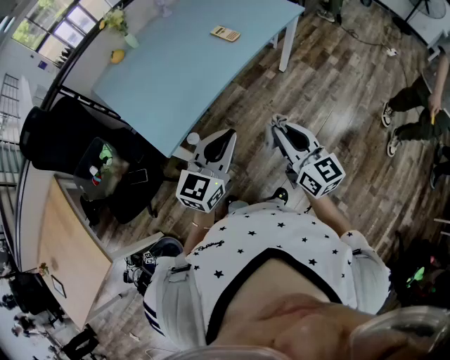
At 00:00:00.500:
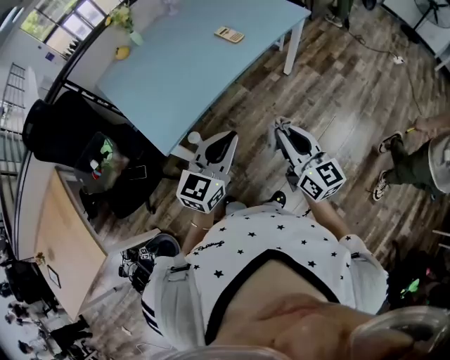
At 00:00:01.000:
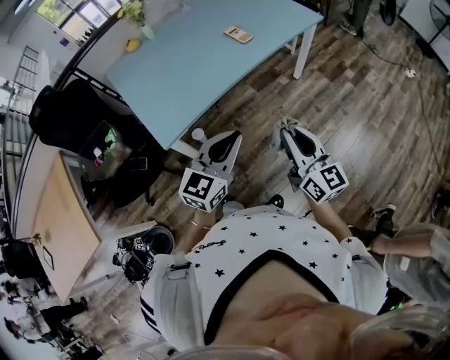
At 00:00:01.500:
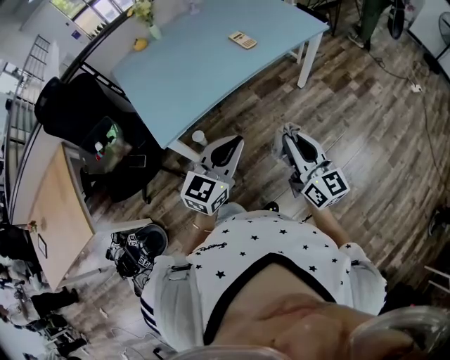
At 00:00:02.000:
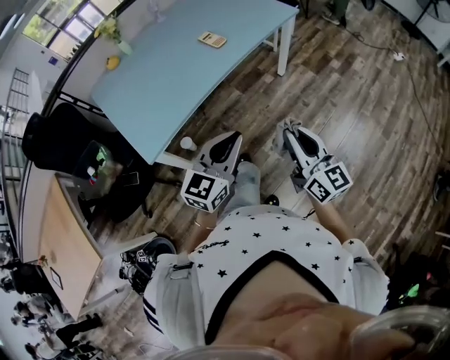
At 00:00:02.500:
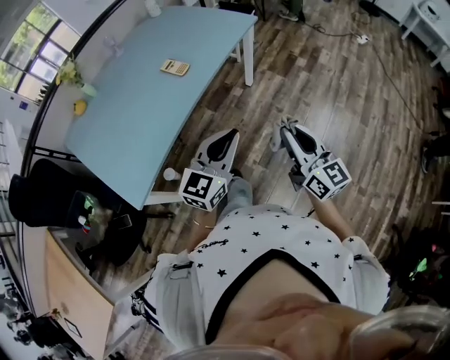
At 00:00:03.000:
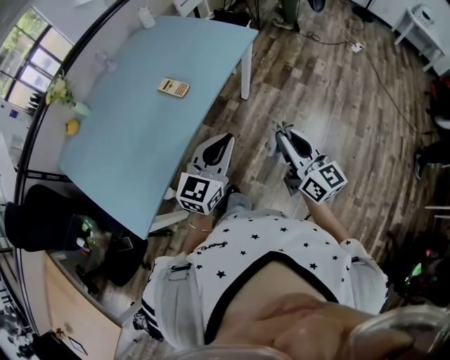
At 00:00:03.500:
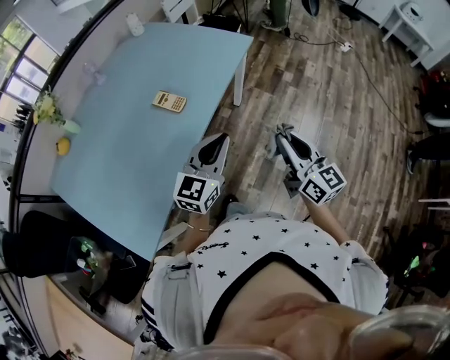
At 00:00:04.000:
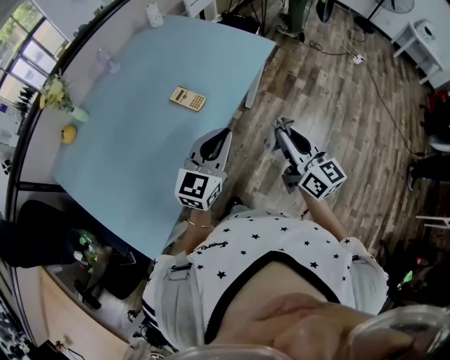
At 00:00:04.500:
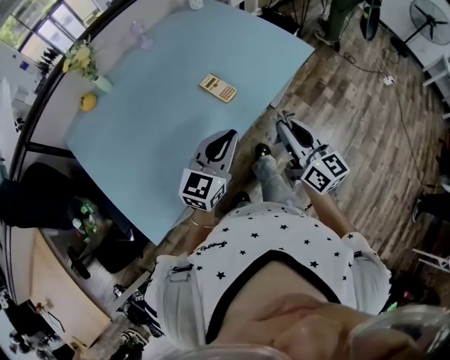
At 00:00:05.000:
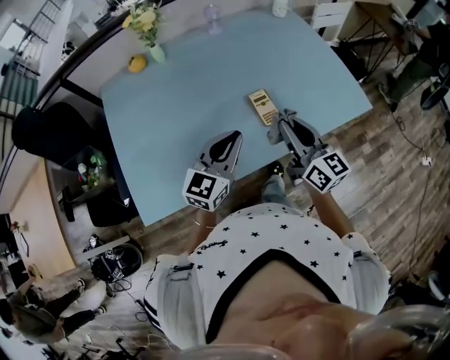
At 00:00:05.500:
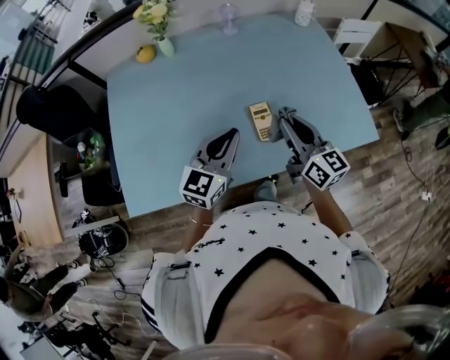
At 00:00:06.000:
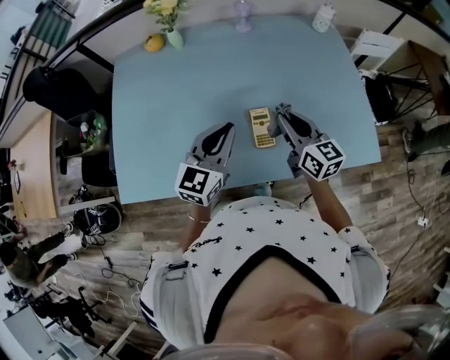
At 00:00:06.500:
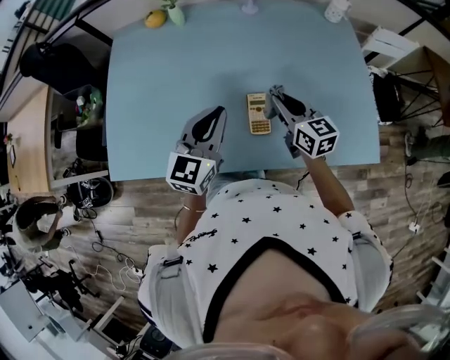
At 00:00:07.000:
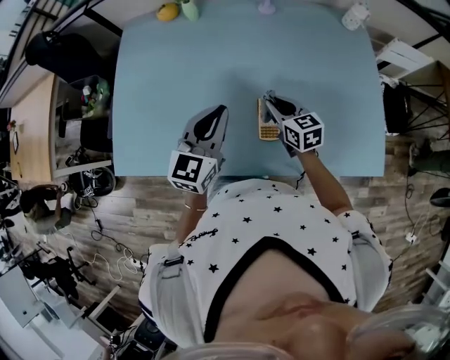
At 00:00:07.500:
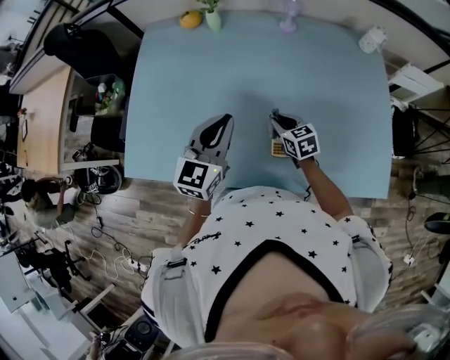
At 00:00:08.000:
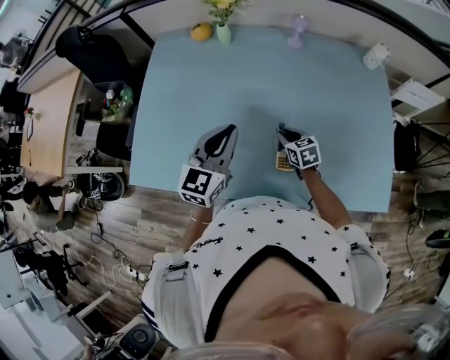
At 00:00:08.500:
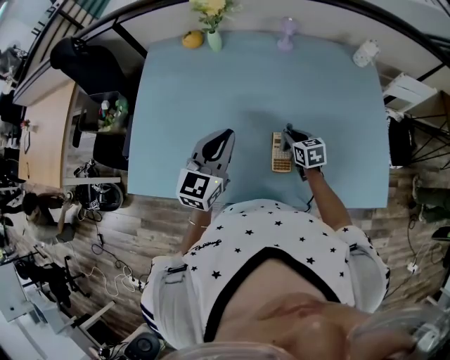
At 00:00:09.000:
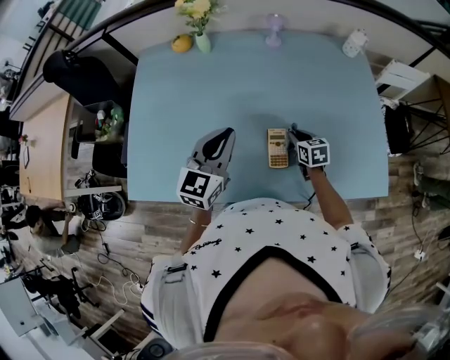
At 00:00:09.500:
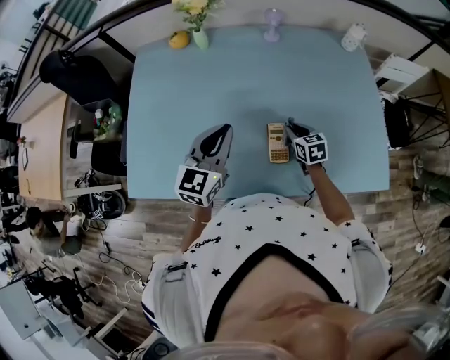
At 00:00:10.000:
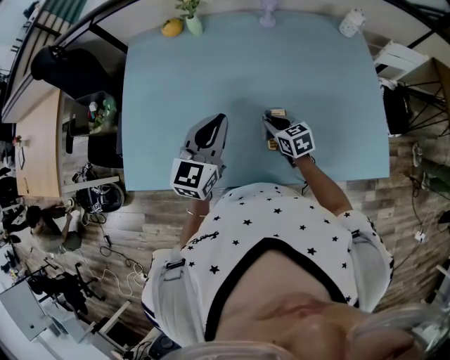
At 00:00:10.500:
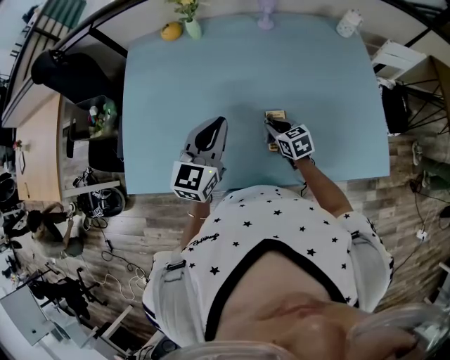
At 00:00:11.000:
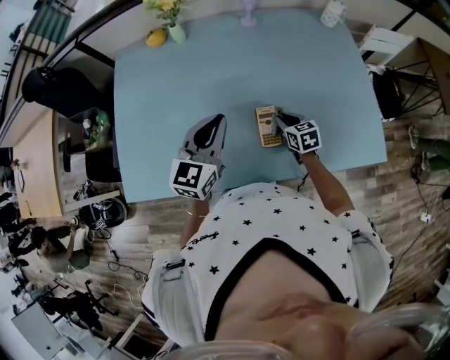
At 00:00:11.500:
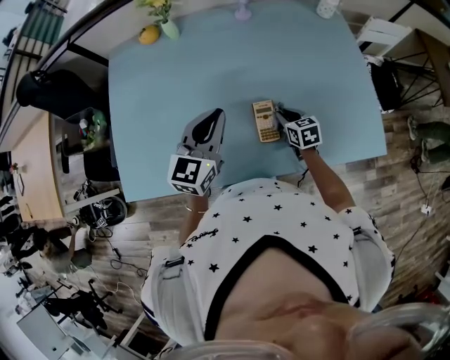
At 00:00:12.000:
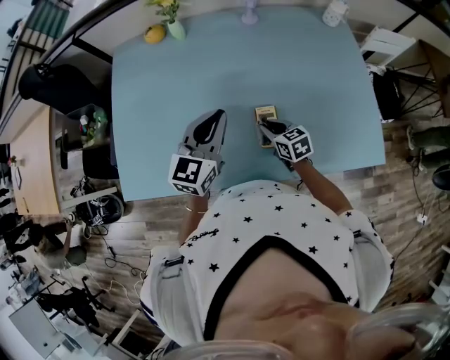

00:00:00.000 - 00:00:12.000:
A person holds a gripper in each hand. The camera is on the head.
00:00:00.000 - 00:00:02.000: Both grippers move to the right, some 10 cm.
00:00:02.000 - 00:00:04.000: Both grippers travel together forward, about 30 cm.
00:00:04.000 - 00:00:06.000: The left gripper ends up approximately 25 cm from where it was, and rotates some 50 degrees, while the right gripper shifts by roughly 40 cm, and rotates approximately 50 degrees.
00:00:06.000 - 00:00:08.000: The left gripper goes some 5 cm to the left. Meanwhile the right gripper goes roughly 20 cm downward and forward, and tilts its fingers about 30 degrees downward.
00:00:08.000 - 00:00:10.000: The right gripper travels to the right and back again, about 10 cm each way.
00:00:10.000 - 00:00:12.000: The right gripper moves roughly 10 cm to the right and comes back.

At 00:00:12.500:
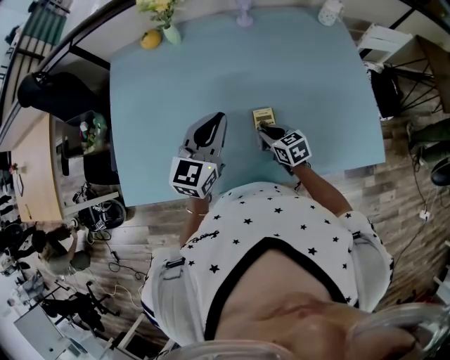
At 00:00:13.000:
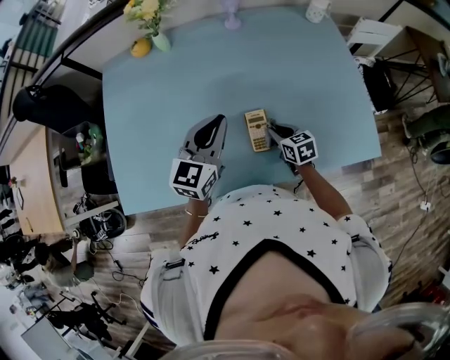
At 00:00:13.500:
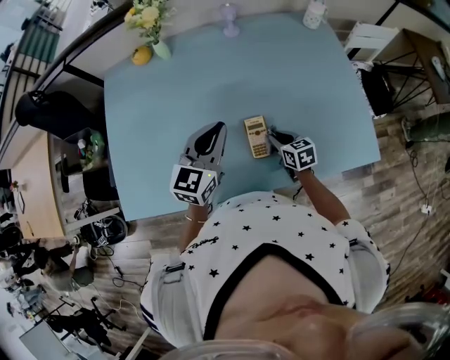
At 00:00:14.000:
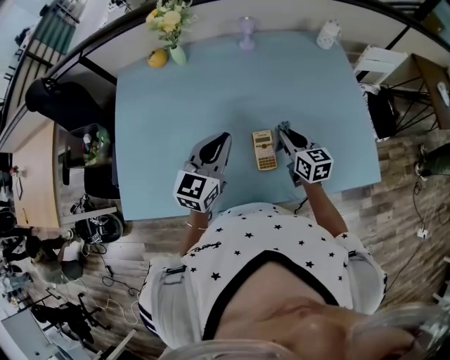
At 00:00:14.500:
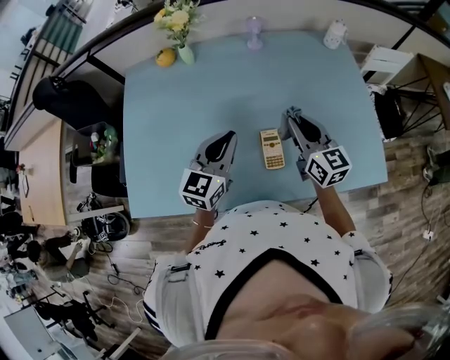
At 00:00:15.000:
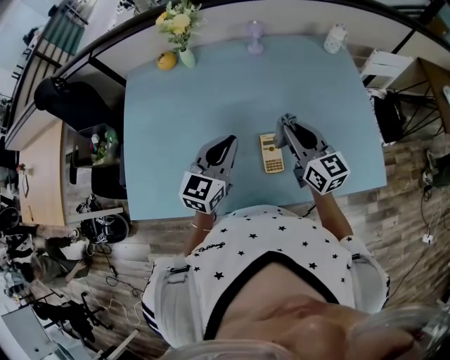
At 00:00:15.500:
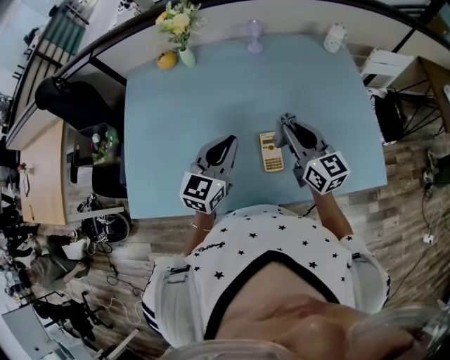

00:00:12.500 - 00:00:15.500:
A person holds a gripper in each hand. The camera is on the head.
00:00:12.500 - 00:00:14.000: The right gripper shifts some 10 cm upward and to the right, and changes its angle by about 20 degrees.
00:00:14.000 - 00:00:15.500: The right gripper goes roughly 10 cm upward.

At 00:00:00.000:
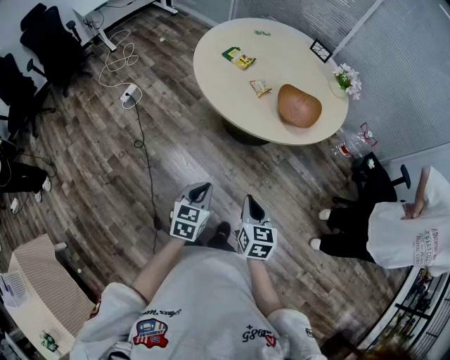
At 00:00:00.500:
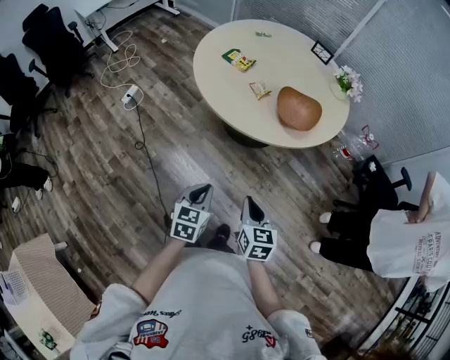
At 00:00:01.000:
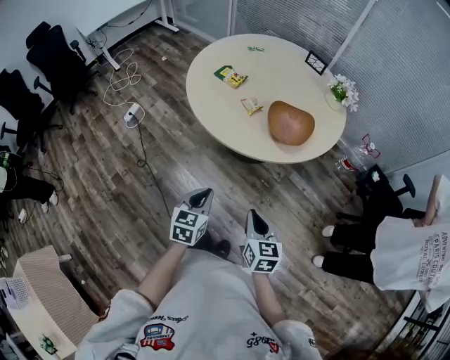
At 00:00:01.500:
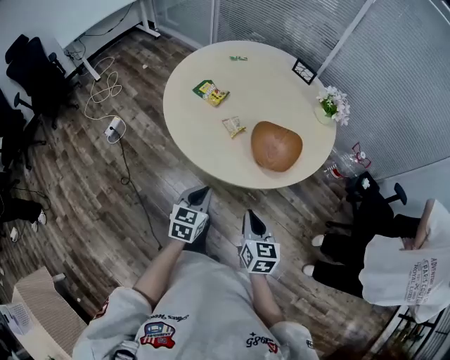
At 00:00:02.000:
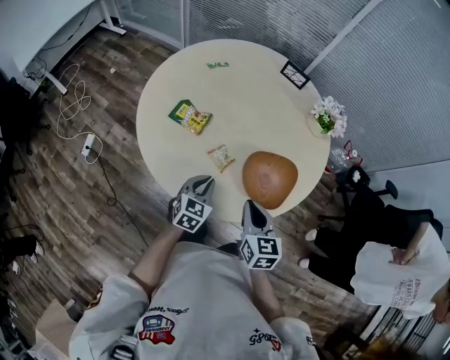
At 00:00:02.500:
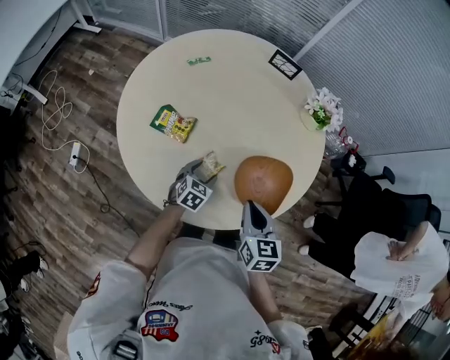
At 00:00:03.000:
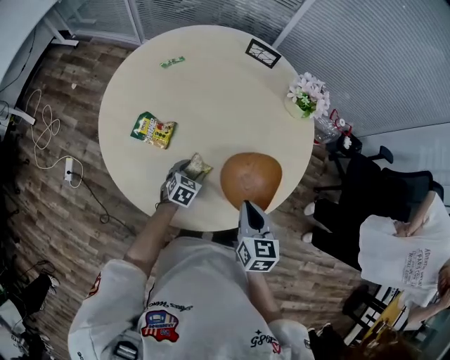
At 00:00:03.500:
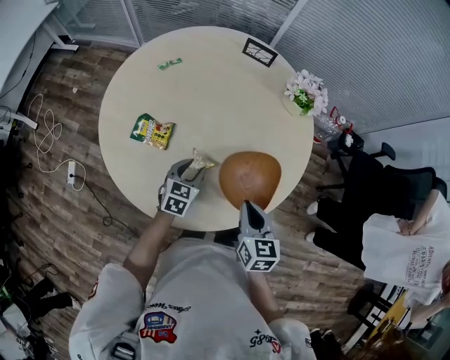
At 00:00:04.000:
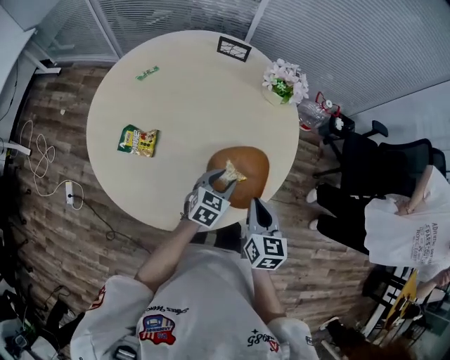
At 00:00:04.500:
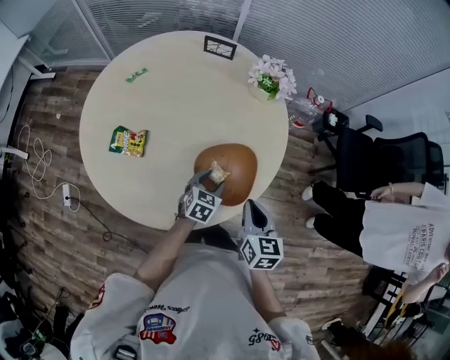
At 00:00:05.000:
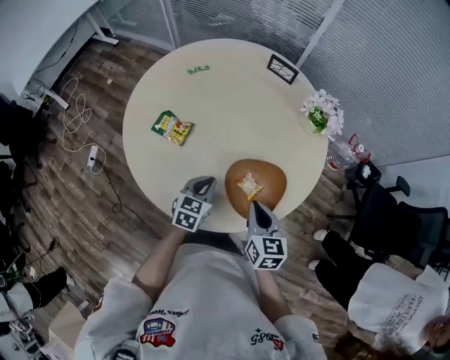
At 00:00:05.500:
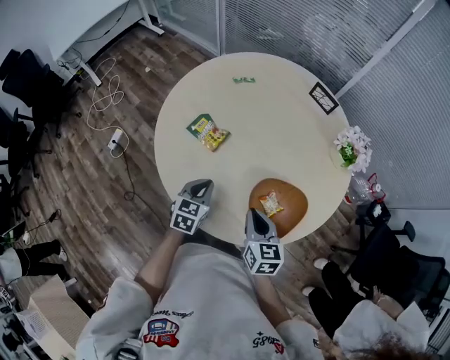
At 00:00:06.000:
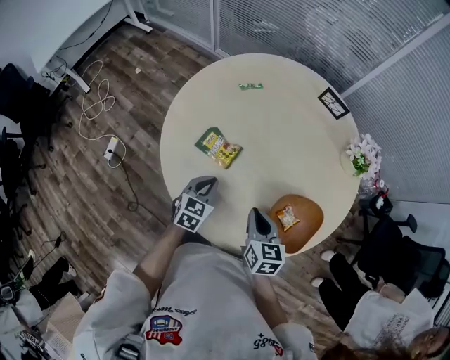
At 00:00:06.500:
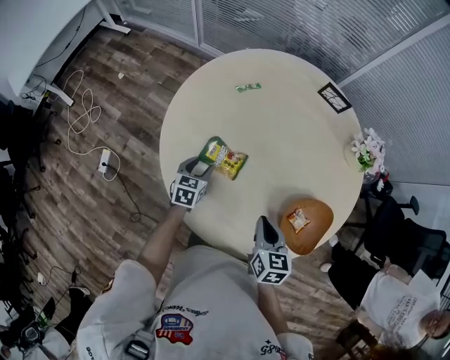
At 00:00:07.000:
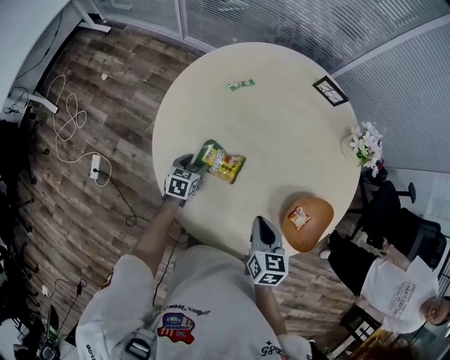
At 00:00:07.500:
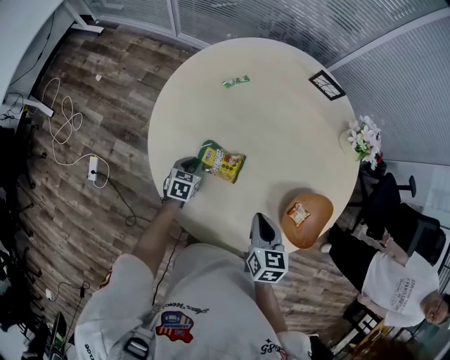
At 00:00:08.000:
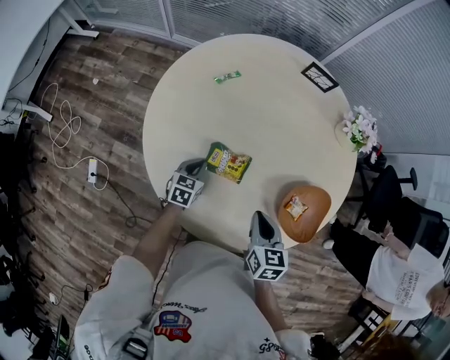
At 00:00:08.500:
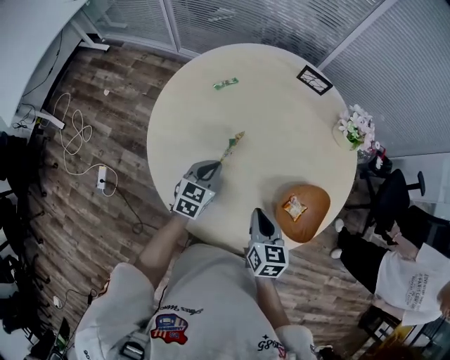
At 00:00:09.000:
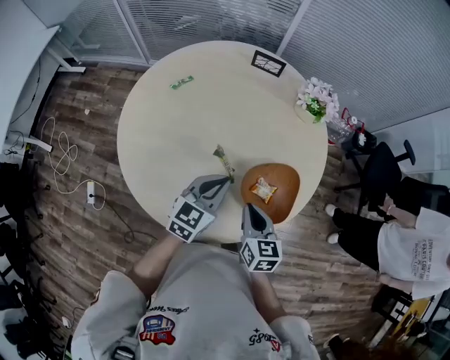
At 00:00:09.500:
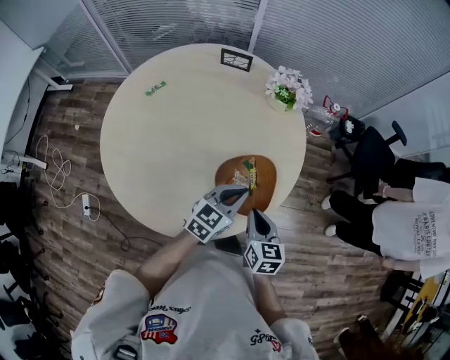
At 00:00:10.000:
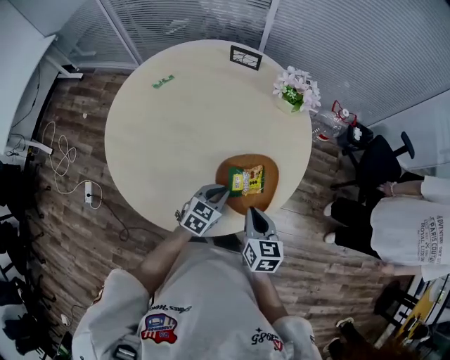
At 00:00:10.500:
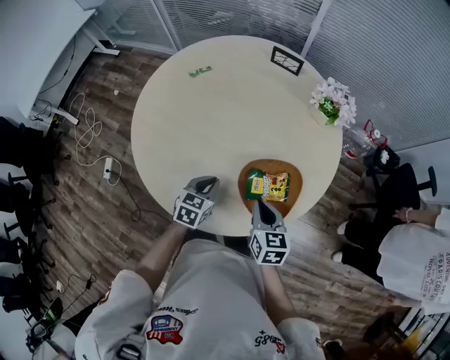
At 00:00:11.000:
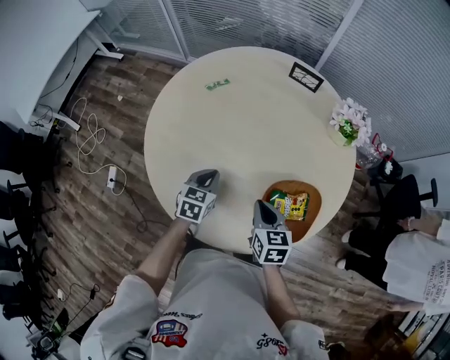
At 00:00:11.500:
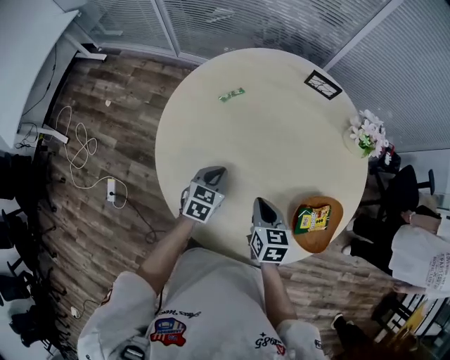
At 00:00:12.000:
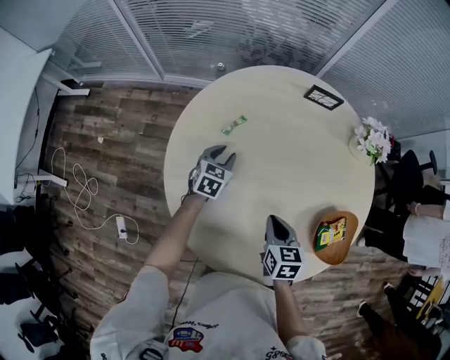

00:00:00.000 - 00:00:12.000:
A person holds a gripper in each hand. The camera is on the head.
00:00:00.000 - 00:00:02.000: Both grippers travel together forward, about 40 cm. The left gripper swivels roughly 20 degrees.
00:00:02.000 - 00:00:04.000: The left gripper moves approximately 15 cm downward and comes back, changes its angle by some 20 degrees, and opens; the right gripper shifts by some 10 cm, and rotates roughly 20 degrees.
00:00:04.000 - 00:00:06.000: The right gripper ends up roughly 25 cm from where it was, and swivels approximately 30 degrees; the left gripper changes place by approximately 30 cm, changes its angle by roughly 30 degrees, and closes up.
00:00:06.000 - 00:00:08.000: The left gripper goes approximately 15 cm downward, forward and to the left, and opens, then closes again.
00:00:08.000 - 00:00:10.000: The right gripper heads to the right, covering about 25 cm; the left gripper travels to the right by roughly 35 cm, and turns by approximately 20 degrees.
00:00:10.000 - 00:00:12.000: The two grippers go approximately 40 cm to the left and forward. The left gripper opens its fingers.
